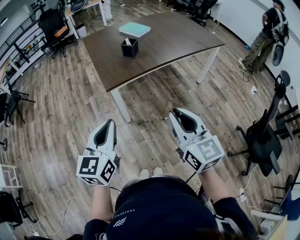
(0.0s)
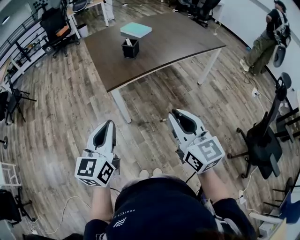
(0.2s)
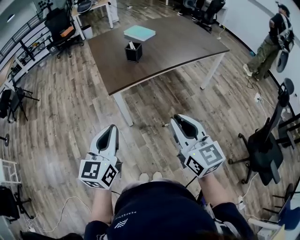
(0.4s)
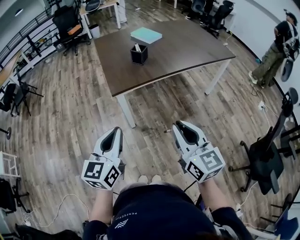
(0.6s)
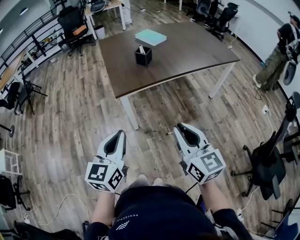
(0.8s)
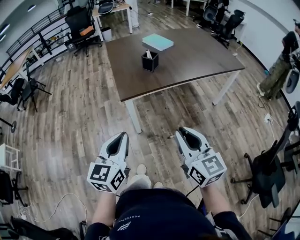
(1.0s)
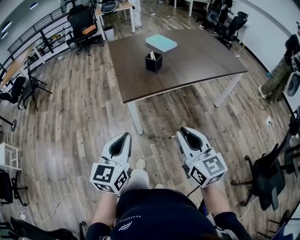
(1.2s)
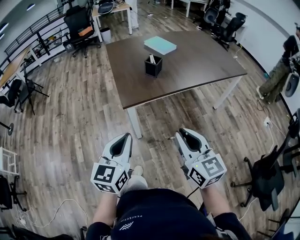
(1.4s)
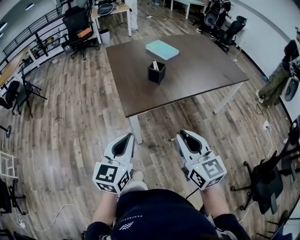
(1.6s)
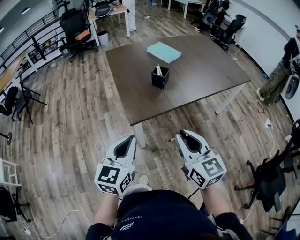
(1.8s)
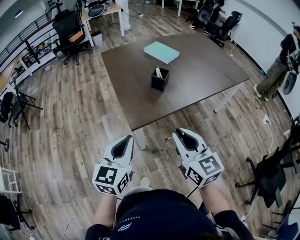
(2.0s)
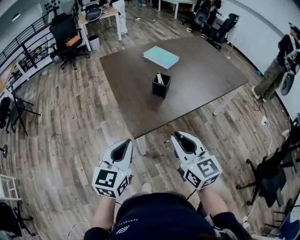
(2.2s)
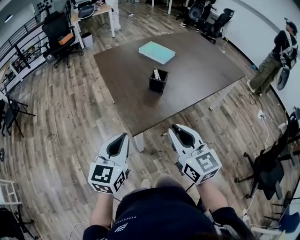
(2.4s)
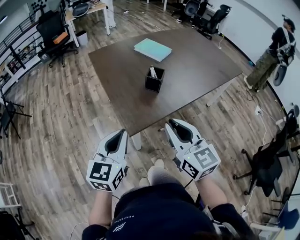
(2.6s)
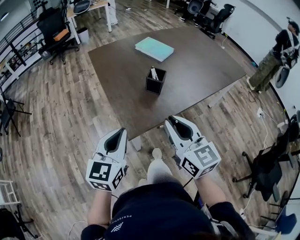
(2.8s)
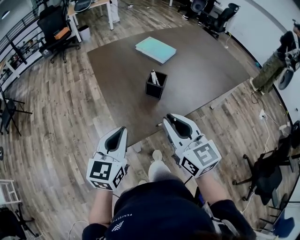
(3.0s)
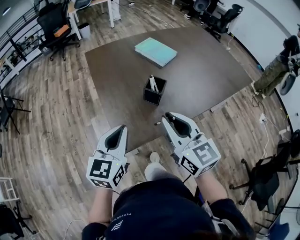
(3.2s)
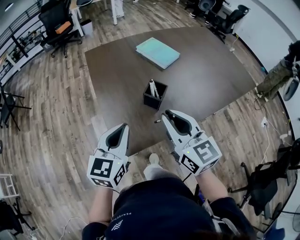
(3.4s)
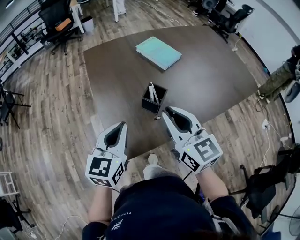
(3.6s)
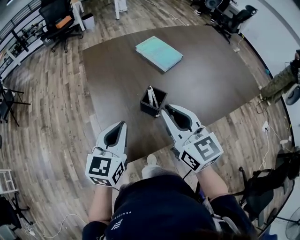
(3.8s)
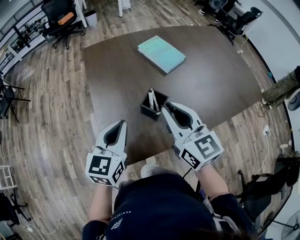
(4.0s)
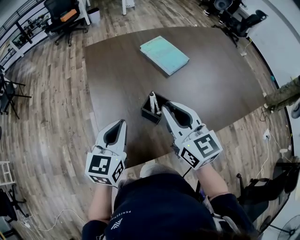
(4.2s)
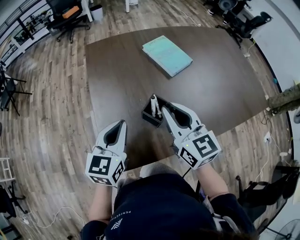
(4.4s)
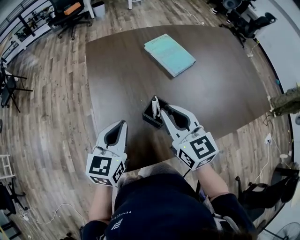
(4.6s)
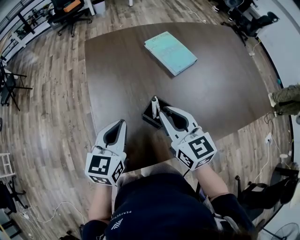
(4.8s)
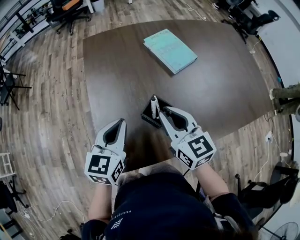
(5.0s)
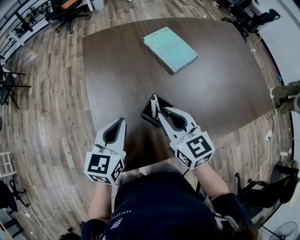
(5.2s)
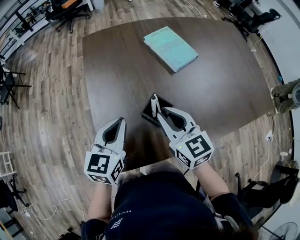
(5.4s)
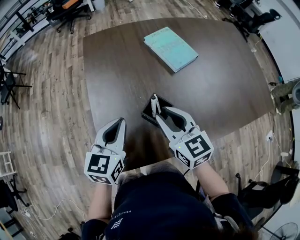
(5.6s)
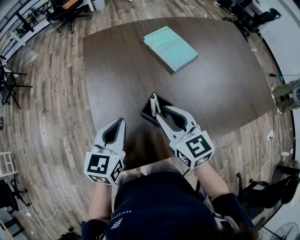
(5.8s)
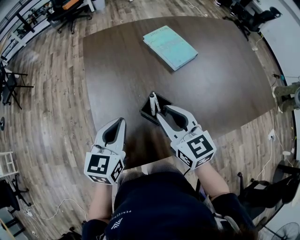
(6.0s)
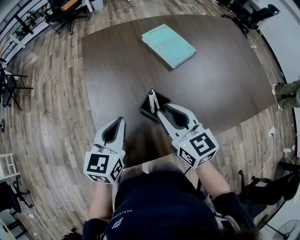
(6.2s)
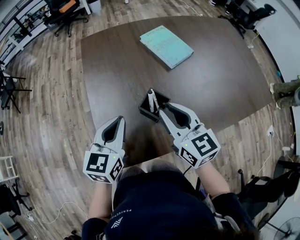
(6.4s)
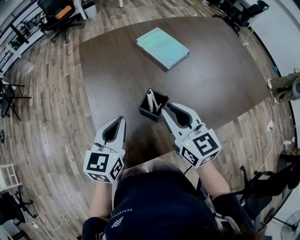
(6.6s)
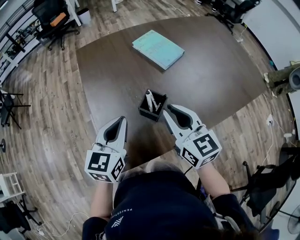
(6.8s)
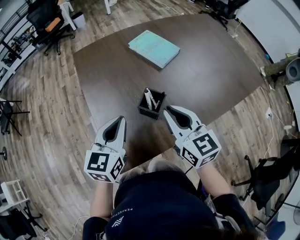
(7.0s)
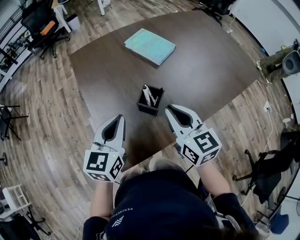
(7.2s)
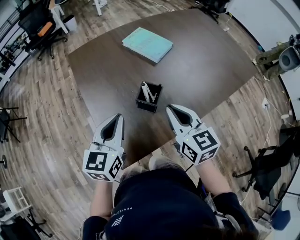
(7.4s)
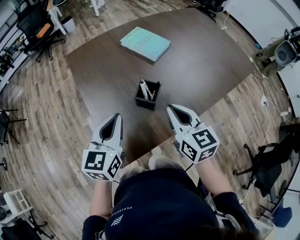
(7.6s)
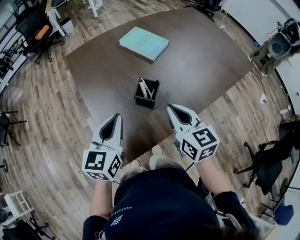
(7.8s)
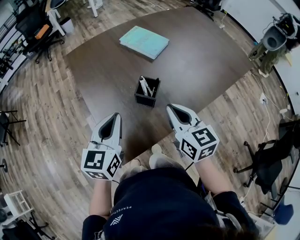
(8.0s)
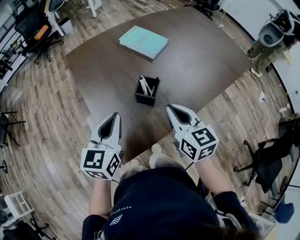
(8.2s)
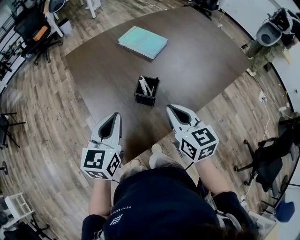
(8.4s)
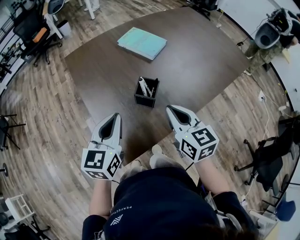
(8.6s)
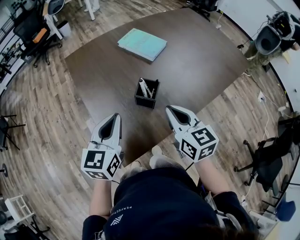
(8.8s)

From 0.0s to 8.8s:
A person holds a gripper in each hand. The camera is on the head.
From 0.0s to 1.4s: Both grippers move forward, roughly 5 cm.
From 1.4s to 3.0s: Both grippers move forward, roughly 25 cm.
From 3.0s to 4.4s: The two grippers go about 20 cm forward.
From 4.4s to 5.8s: The right gripper is displaced downward by about 5 cm.
From 5.8s to 7.4s: The right gripper shifts about 5 cm backward, rotates some 20 degrees, and closes its fingers, while the left gripper shifts by some 5 cm.
From 7.4s to 8.8s: The grippers stay close to where they were, moving slightly.

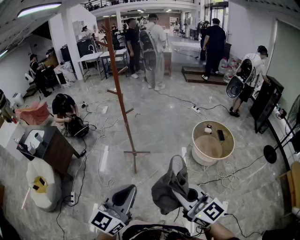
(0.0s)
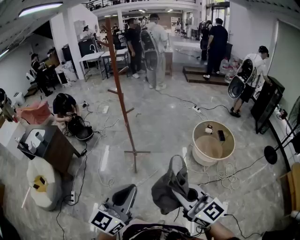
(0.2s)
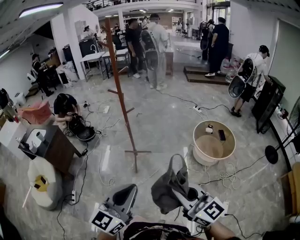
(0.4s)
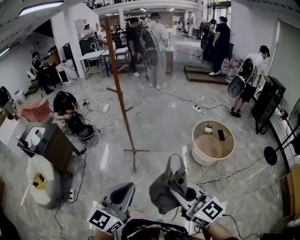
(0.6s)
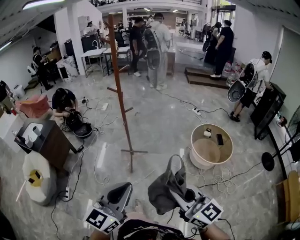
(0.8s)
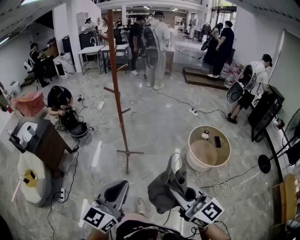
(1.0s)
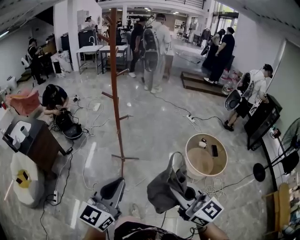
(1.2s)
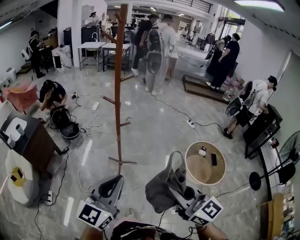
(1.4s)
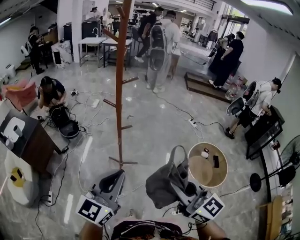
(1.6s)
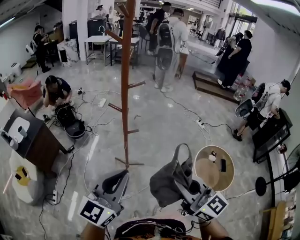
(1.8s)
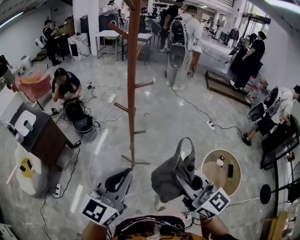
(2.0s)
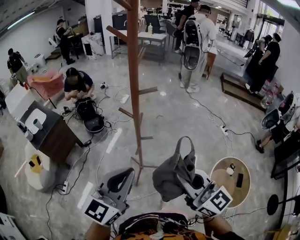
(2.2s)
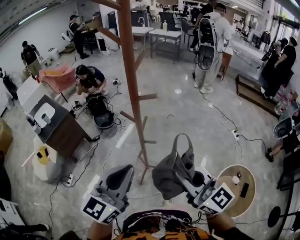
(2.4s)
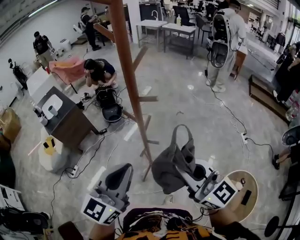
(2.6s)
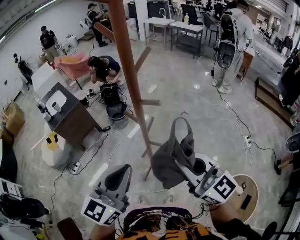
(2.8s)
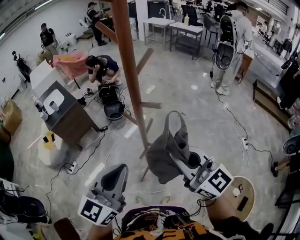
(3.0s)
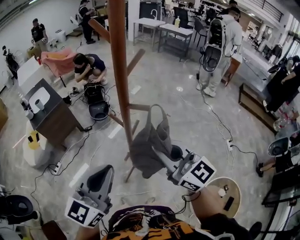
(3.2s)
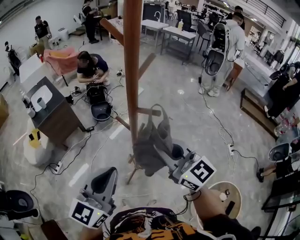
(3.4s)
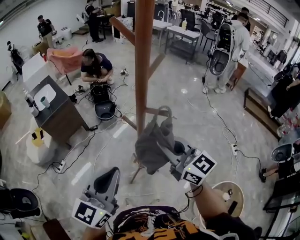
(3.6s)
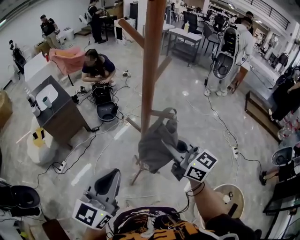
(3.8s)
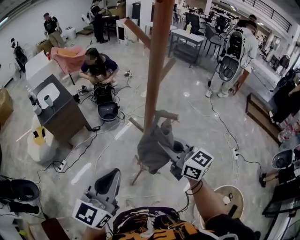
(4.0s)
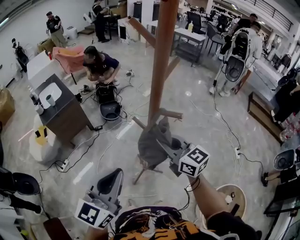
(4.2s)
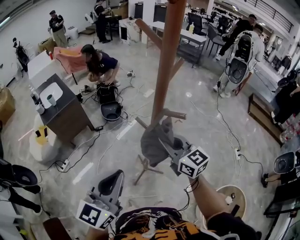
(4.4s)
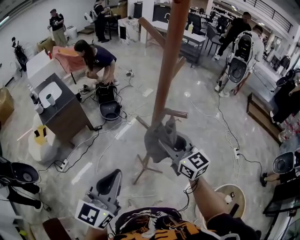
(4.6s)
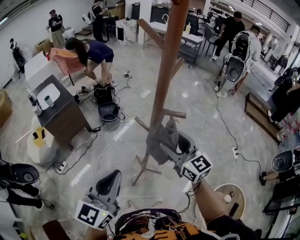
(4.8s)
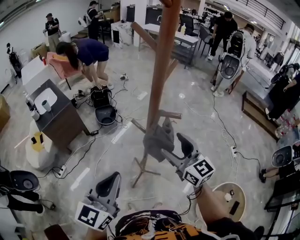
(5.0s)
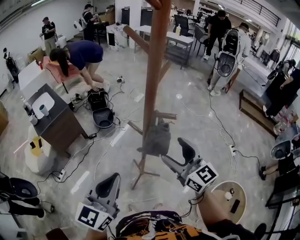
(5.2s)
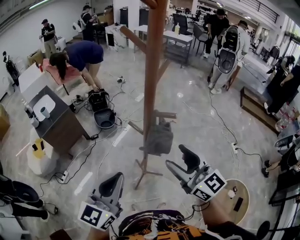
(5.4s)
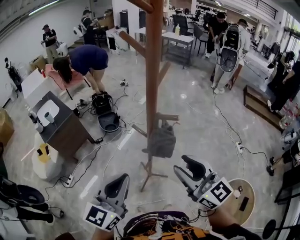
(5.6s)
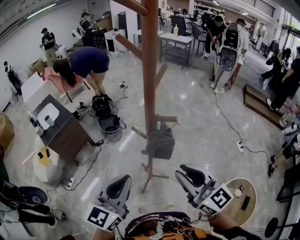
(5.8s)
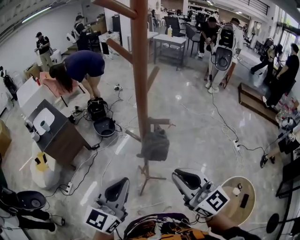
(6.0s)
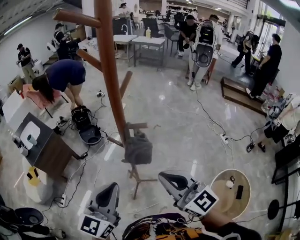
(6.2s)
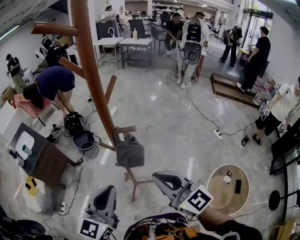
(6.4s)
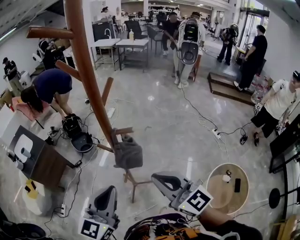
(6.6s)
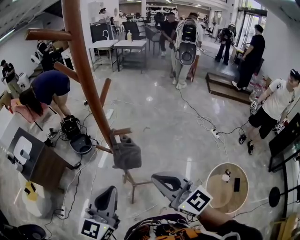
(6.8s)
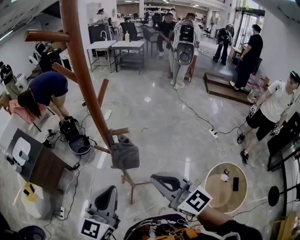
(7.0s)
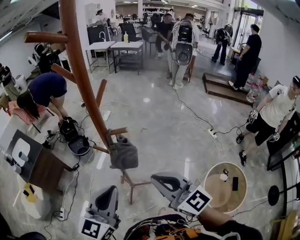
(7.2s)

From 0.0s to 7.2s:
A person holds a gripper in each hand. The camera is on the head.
From 0.0s to 1.4s: The grippers both shift forward by roughly 25 cm.
From 1.4s to 2.8s: The left gripper changes place by some 30 cm, and swivels about 30 degrees. Meanwhile the right gripper shifts by approximately 40 cm, and turns by roughly 30 degrees.
From 2.8s to 4.4s: The left gripper is displaced to the left by about 5 cm; the right gripper is displaced forward and downward by some 20 cm.
From 4.4s to 5.8s: The right gripper heads backward and upward, covering some 15 cm, and opens and closes again.
From 5.8s to 7.2s: There are only small adjustments of the grippers.

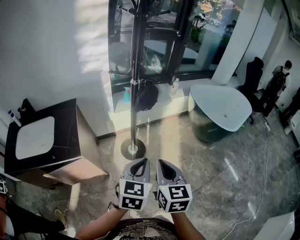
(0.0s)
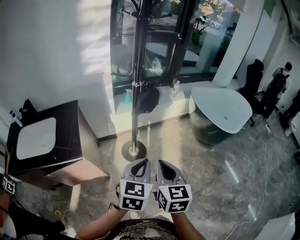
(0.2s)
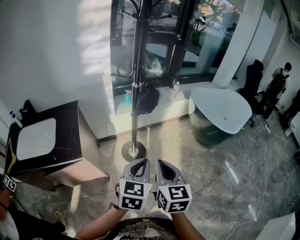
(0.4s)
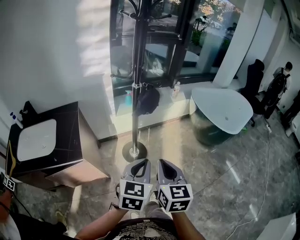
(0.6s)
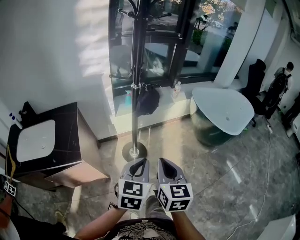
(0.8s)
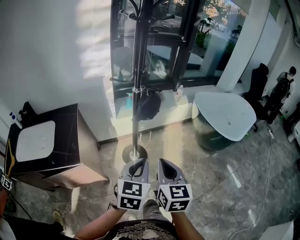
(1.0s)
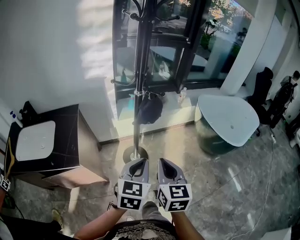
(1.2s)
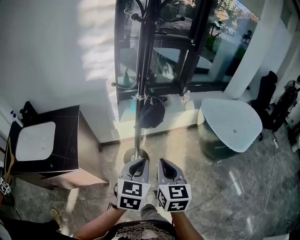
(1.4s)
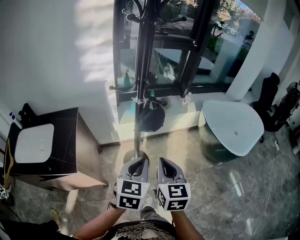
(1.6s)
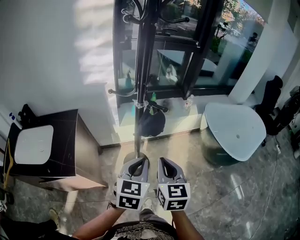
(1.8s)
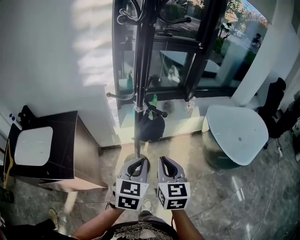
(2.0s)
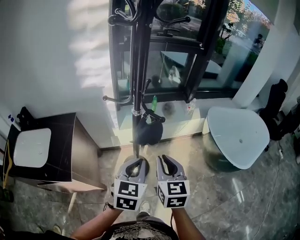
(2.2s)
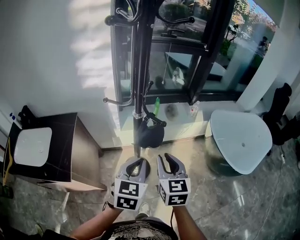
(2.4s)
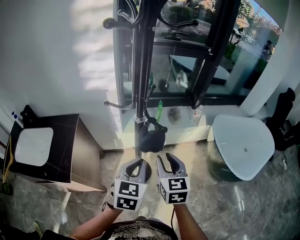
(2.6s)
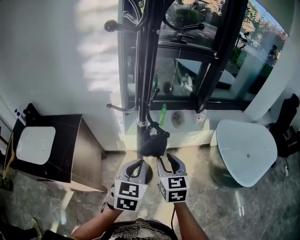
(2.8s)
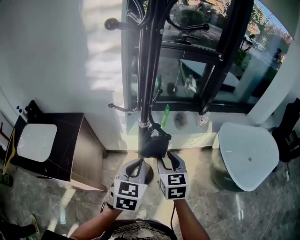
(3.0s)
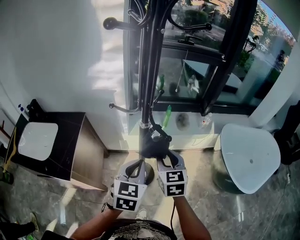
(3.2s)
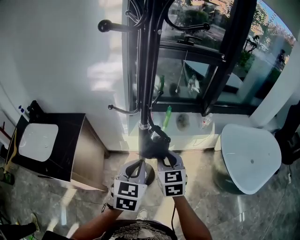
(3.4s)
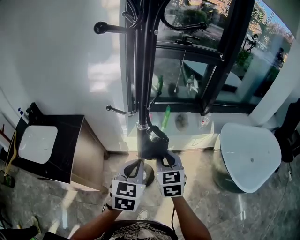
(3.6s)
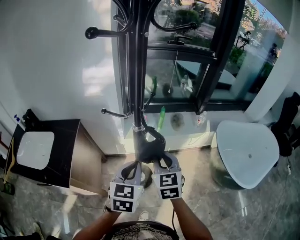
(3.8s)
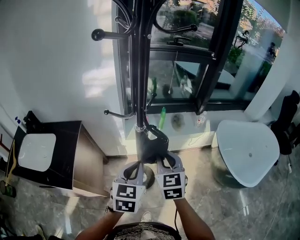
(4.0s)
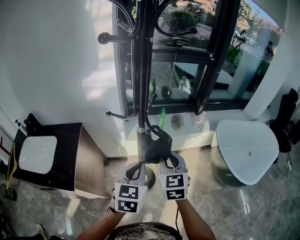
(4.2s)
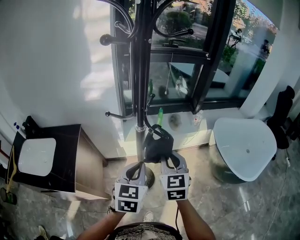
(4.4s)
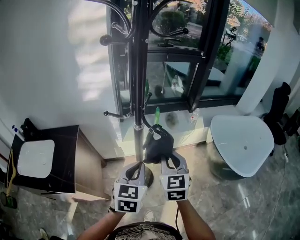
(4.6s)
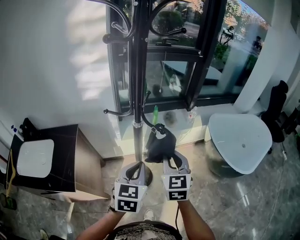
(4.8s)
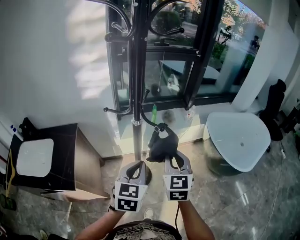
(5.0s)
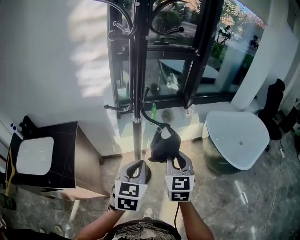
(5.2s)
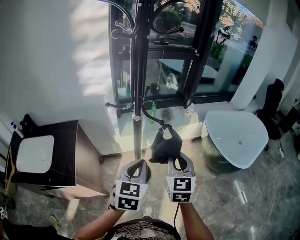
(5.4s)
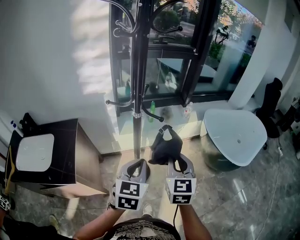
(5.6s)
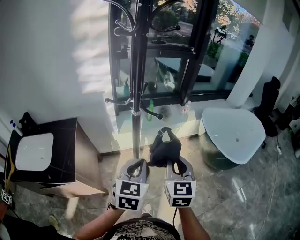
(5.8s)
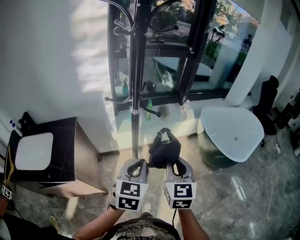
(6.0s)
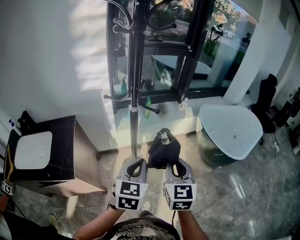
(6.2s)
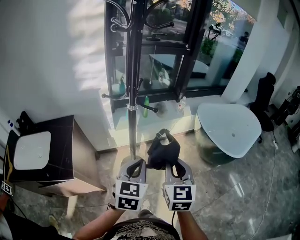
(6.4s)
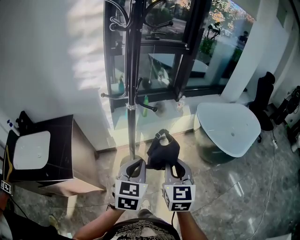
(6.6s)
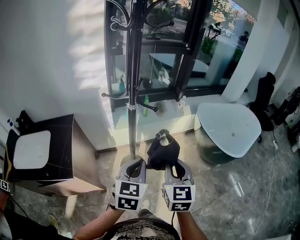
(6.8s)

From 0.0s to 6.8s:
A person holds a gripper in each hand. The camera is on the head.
From 0.0s to 1.4s: Both grippers travel together forward, roughly 10 cm.
From 1.4s to 2.8s: The grippers both shift forward by some 15 cm. The right gripper opens its fingers.
From 2.8s to 4.0s: The right gripper closes up.
From 4.0s to 5.4s: The left gripper travels backward by about 5 cm. Meanwhile the right gripper travels backward and to the right by some 10 cm.
From 5.4s to 6.8s: The right gripper heads backward, covering roughly 10 cm. The left gripper moves backward, about 5 cm.

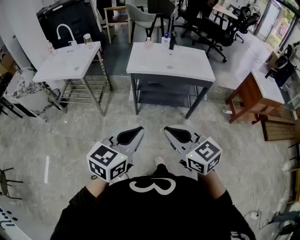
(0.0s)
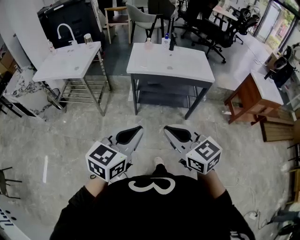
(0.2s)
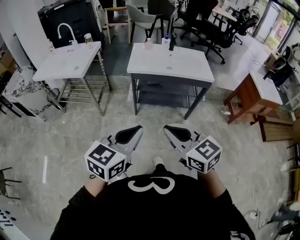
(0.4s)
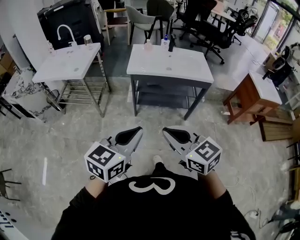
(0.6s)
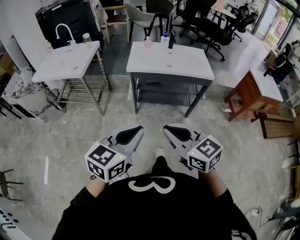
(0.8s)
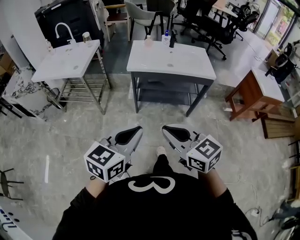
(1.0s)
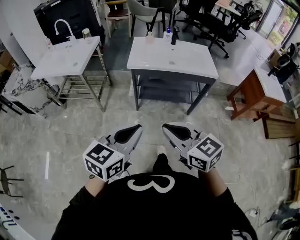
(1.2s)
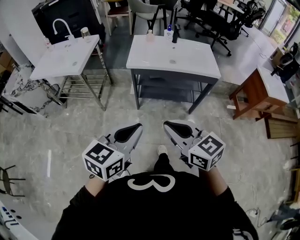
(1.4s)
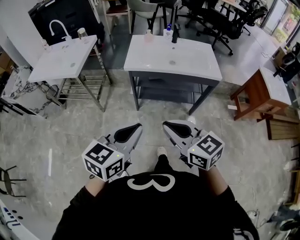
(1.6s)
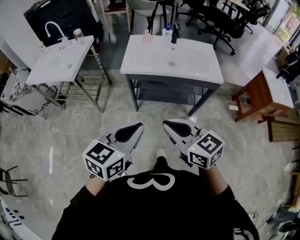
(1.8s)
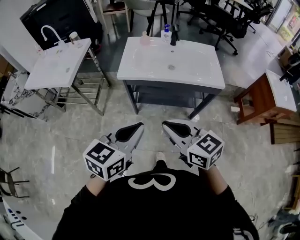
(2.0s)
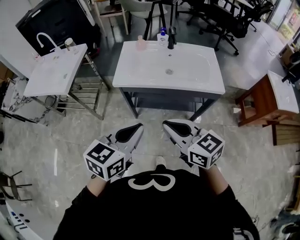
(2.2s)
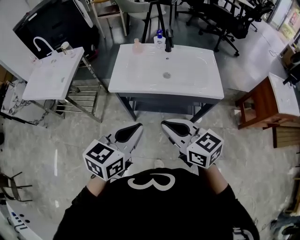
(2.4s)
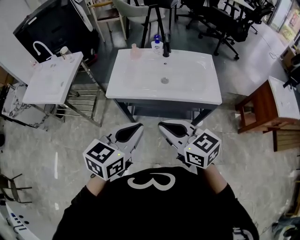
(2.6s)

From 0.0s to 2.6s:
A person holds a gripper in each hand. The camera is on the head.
From 0.0s to 1.2s: The grippers stay close to where they were, moving slightly.
From 1.2s to 2.6s: Both grippers move forward and to the right, some 35 cm.
